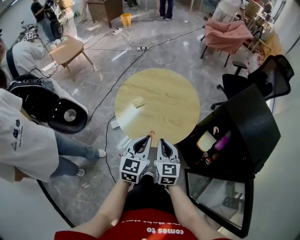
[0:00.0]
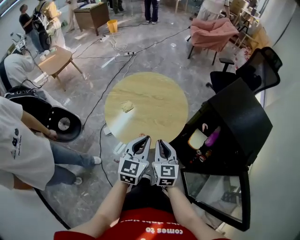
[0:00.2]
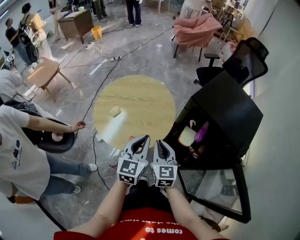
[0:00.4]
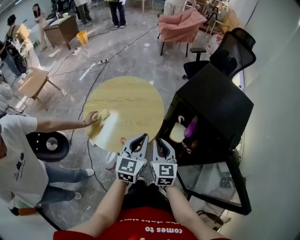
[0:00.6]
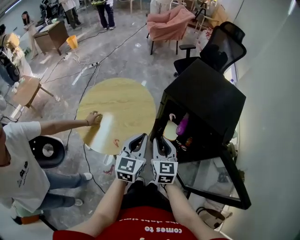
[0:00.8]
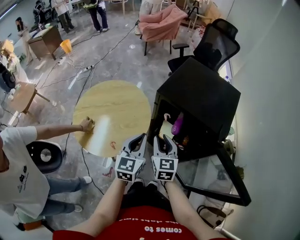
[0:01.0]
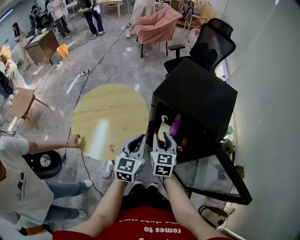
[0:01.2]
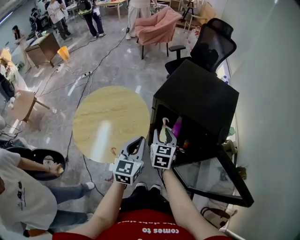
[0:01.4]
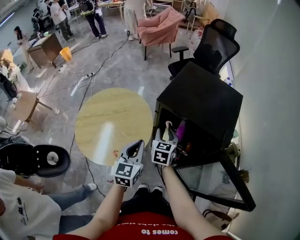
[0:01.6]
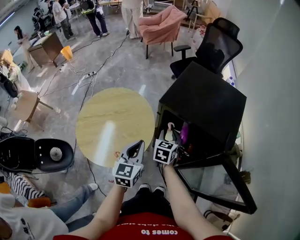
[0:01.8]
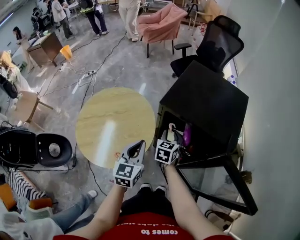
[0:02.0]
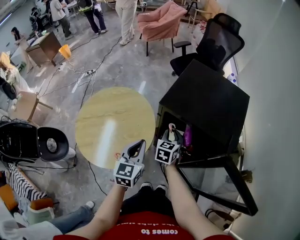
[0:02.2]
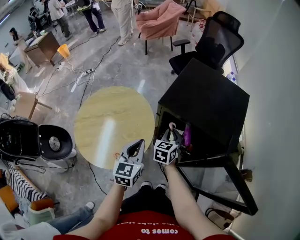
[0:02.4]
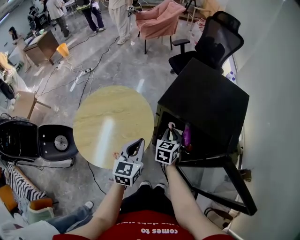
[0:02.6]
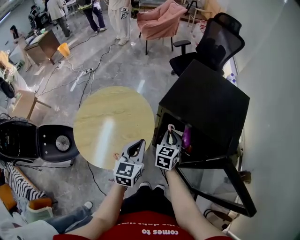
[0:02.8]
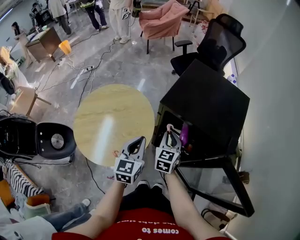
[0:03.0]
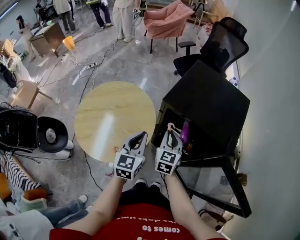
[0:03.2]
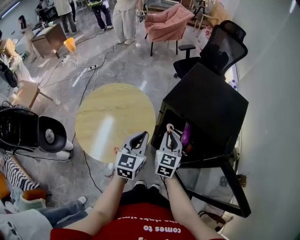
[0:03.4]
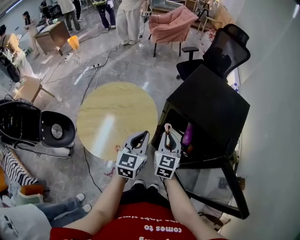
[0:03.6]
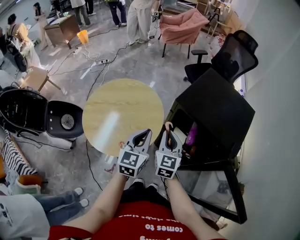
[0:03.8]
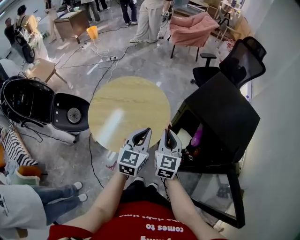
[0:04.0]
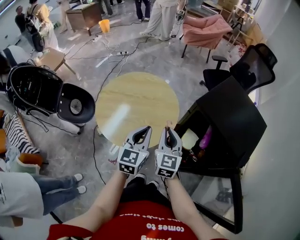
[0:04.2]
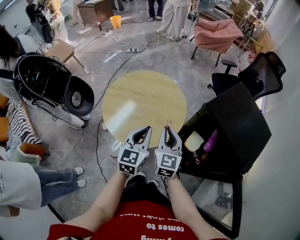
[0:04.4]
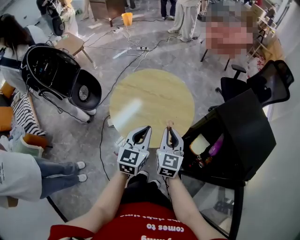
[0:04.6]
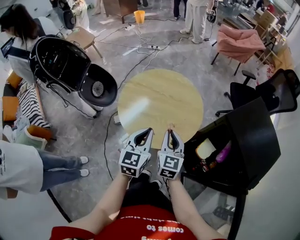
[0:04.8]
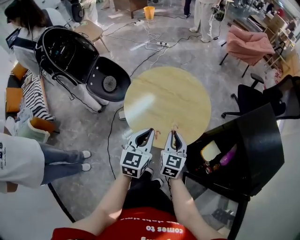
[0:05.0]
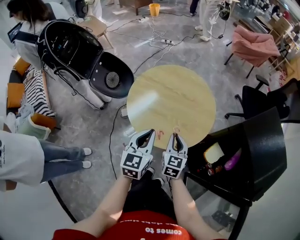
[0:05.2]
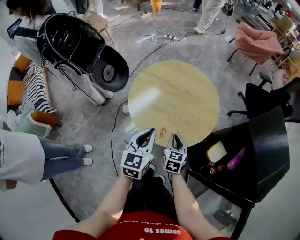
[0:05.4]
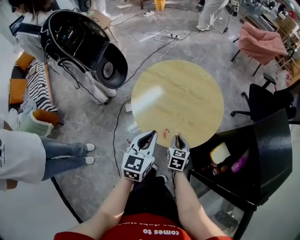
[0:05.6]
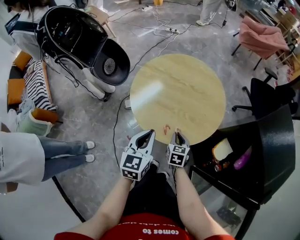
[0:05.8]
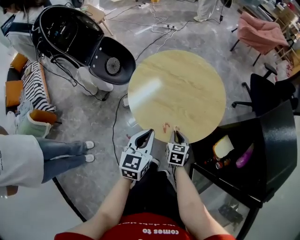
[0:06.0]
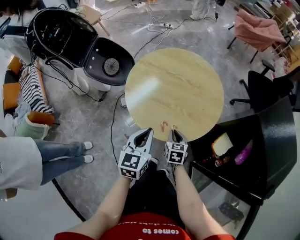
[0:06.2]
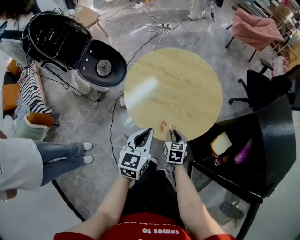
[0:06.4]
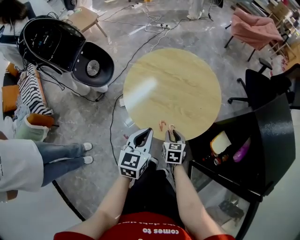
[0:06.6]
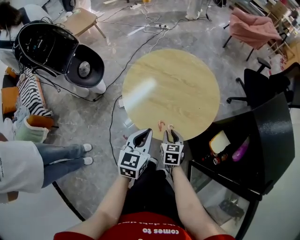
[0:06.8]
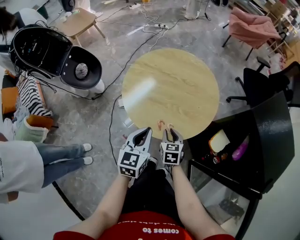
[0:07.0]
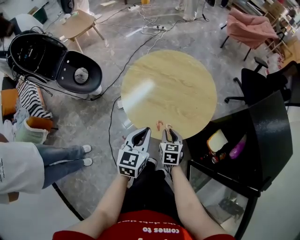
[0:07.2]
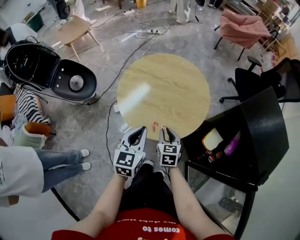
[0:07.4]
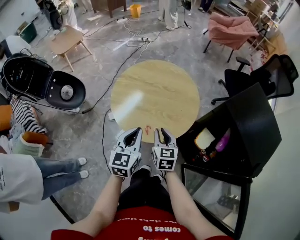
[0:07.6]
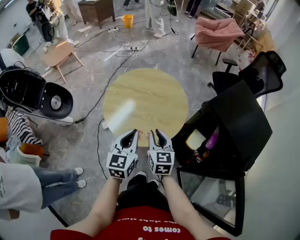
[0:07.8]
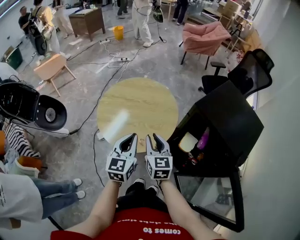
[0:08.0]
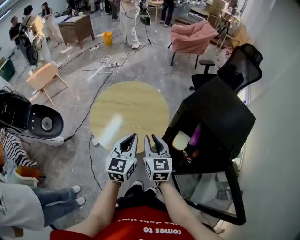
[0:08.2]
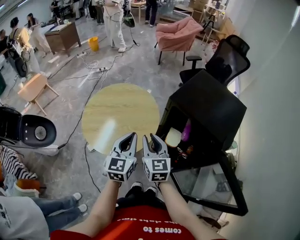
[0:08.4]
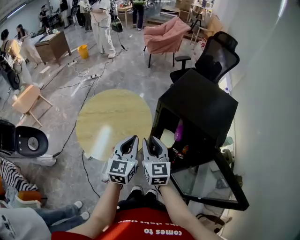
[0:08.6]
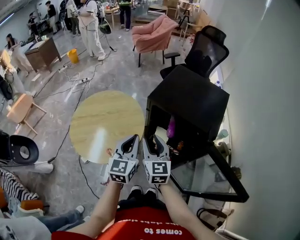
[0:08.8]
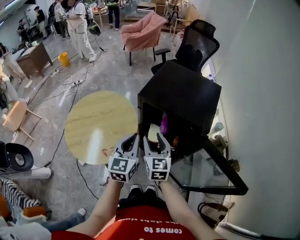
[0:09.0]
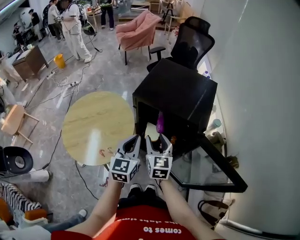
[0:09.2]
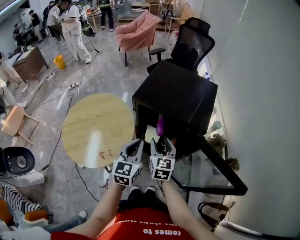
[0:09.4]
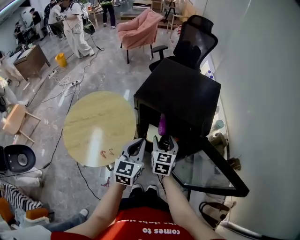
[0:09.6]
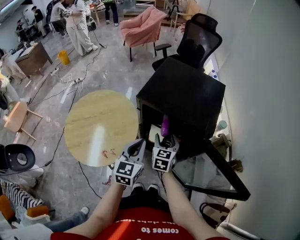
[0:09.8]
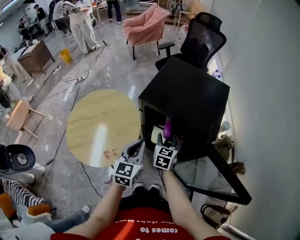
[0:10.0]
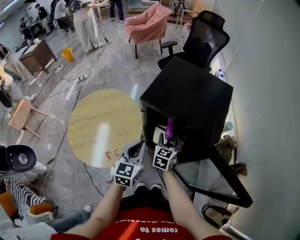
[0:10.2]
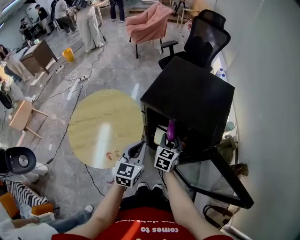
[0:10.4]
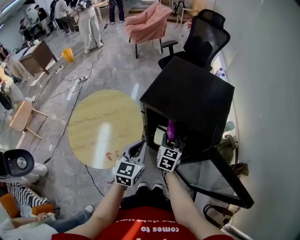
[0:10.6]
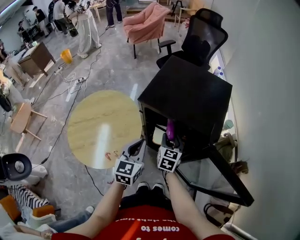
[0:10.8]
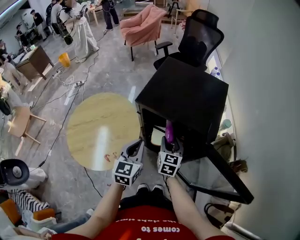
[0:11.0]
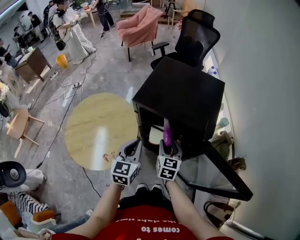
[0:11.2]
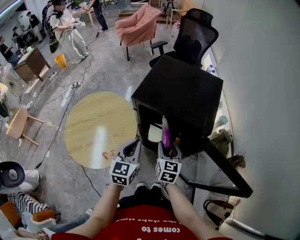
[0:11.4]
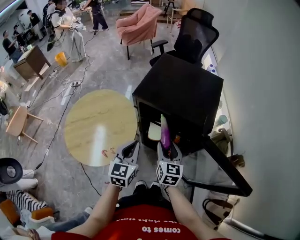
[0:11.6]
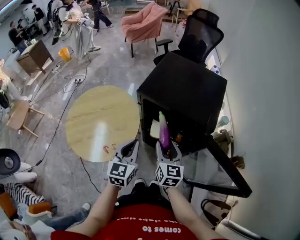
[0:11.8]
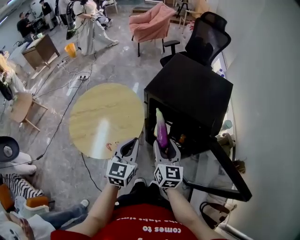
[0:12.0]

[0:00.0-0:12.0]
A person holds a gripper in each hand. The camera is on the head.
0:00.0 to 0:01.6: The right gripper moves approximately 25 cm, changes its angle by some 40 degrees, and opens its fingers; the left gripper shifts by roughly 20 cm, and turns by approximately 20 degrees.
0:01.6 to 0:03.0: The right gripper closes.
0:03.0 to 0:04.4: The right gripper changes place by approximately 20 cm, and rotates approximately 30 degrees. Meanwhile the left gripper shifts by some 15 cm, and turns by roughly 20 degrees.
0:04.4 to 0:06.0: The left gripper travels to the left and downward by some 15 cm. The right gripper goes roughly 25 cm downward, and tilts its fingers roughly 30 degrees downward.
0:06.0 to 0:07.6: The left gripper goes approximately 5 cm upward. Meanwhile the right gripper goes approximately 15 cm upward.
0:07.6 to 0:09.0: The right gripper changes place by about 30 cm, rotates approximately 40 degrees, and opens up. Meanwhile the left gripper moves about 25 cm, and changes its angle by about 30 degrees.
0:09.0 to 0:10.4: The left gripper goes roughly 5 cm downward. Meanwhile the right gripper heads downward, forward and to the right, covering roughly 15 cm, and swivels roughly 30 degrees.
0:10.4 to 0:12.0: The right gripper travels backward and upward by about 15 cm, and turns by roughly 30 degrees, while the left gripper shifts approximately 5 cm backward.

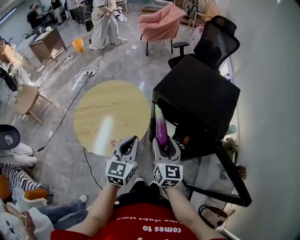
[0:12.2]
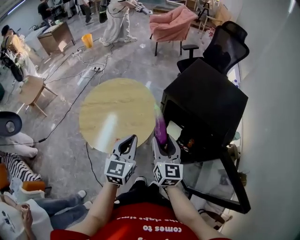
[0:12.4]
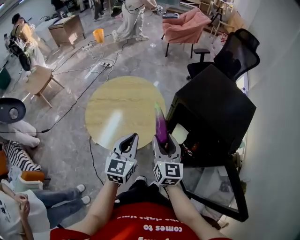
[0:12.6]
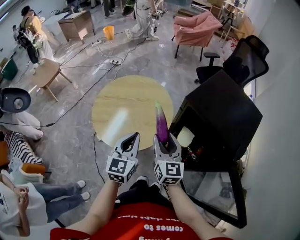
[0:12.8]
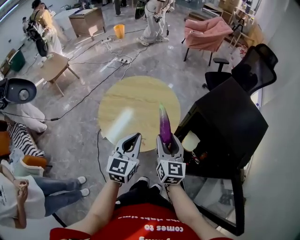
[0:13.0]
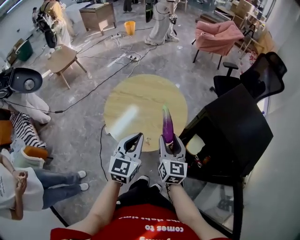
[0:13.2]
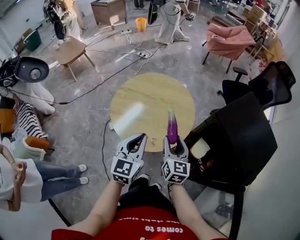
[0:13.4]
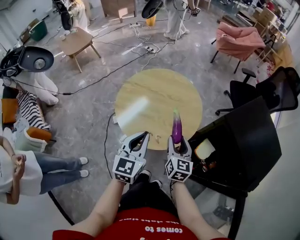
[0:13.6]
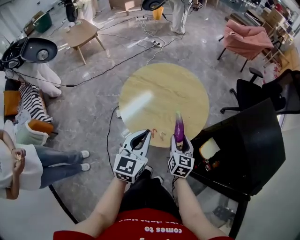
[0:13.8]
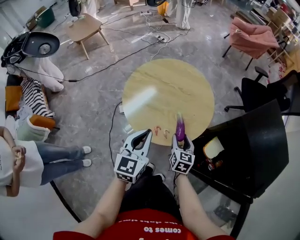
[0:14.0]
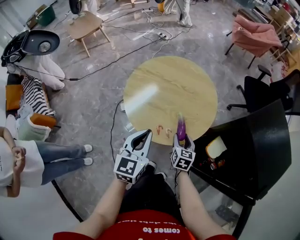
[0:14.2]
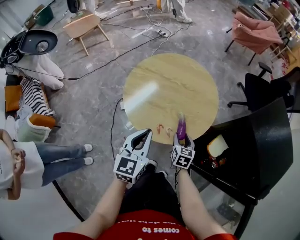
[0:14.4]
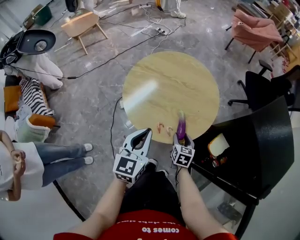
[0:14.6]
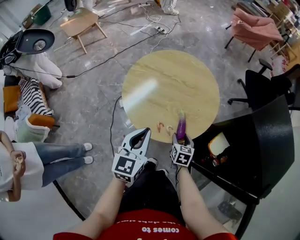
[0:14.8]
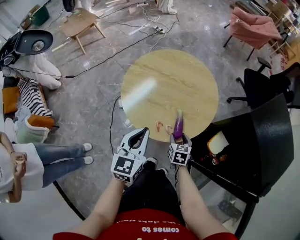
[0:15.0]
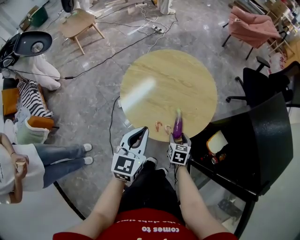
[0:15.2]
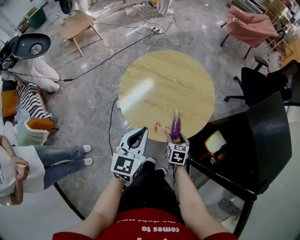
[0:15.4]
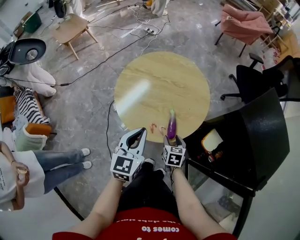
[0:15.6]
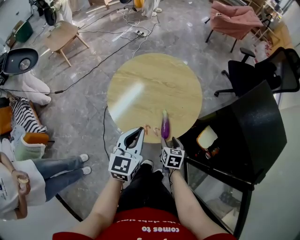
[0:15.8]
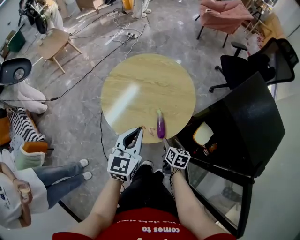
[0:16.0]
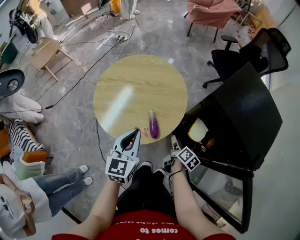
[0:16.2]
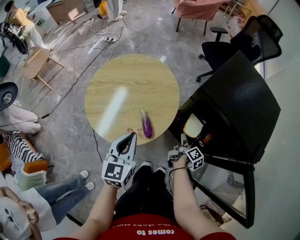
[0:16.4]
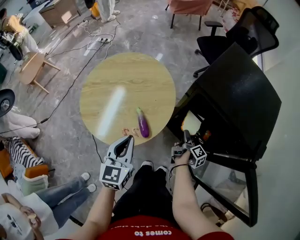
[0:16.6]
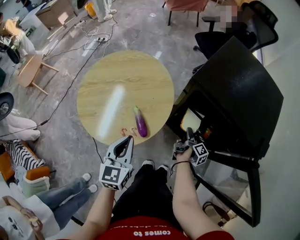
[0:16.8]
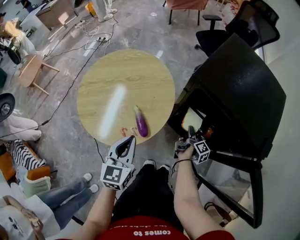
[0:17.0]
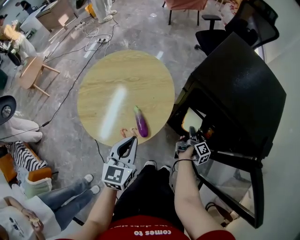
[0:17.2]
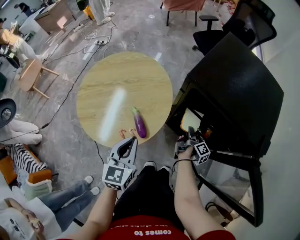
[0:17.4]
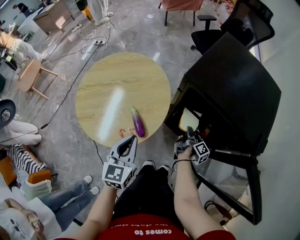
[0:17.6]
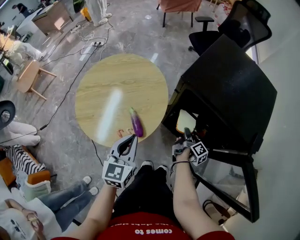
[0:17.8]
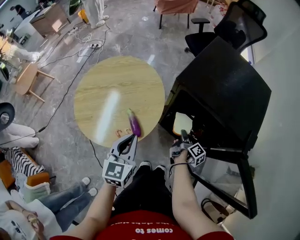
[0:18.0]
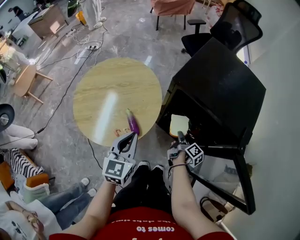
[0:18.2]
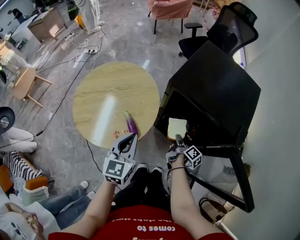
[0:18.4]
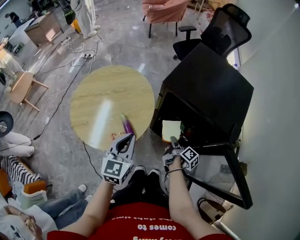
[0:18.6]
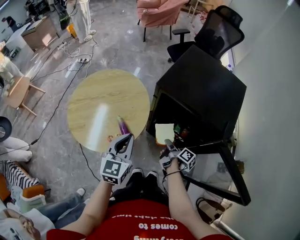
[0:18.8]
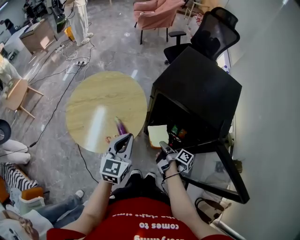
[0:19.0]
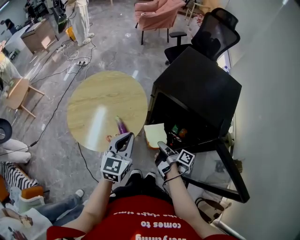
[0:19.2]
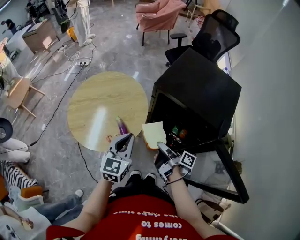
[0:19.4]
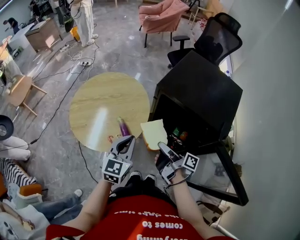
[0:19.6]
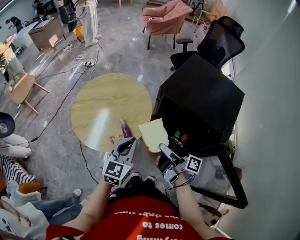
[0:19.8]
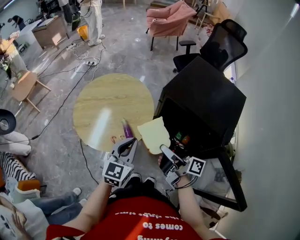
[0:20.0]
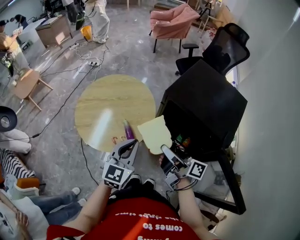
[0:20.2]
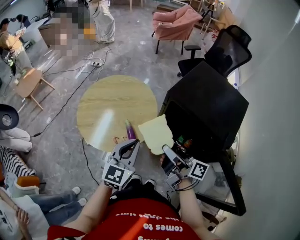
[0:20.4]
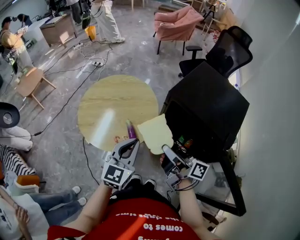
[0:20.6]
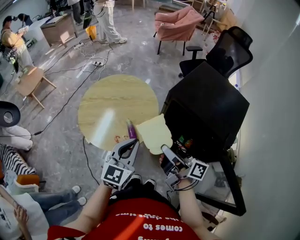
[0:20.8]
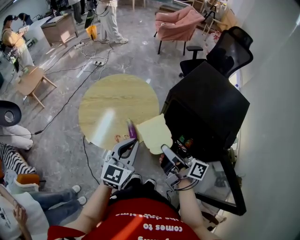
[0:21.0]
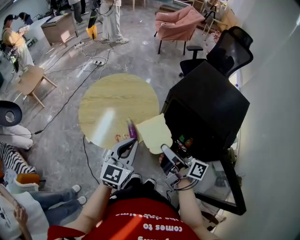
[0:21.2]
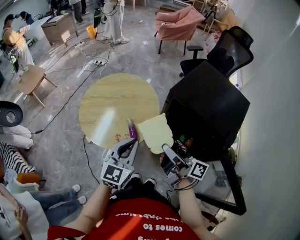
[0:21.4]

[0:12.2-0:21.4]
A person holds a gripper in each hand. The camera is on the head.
0:12.2 to 0:13.8: The right gripper moves roughly 25 cm, and turns by roughly 30 degrees; the left gripper changes place by about 20 cm, and changes its angle by about 30 degrees.
0:13.8 to 0:15.2: The right gripper travels downward by roughly 15 cm, and rotates approximately 20 degrees. The left gripper ends up roughly 5 cm from where it was.
0:15.2 to 0:16.8: The right gripper moves approximately 25 cm, and twists about 100 degrees clockwise, seen from behind, while the left gripper changes place by approximately 10 cm, and changes its angle by some 20 degrees.
0:16.8 to 0:18.4: The left gripper heads to the right and upward, covering some 10 cm. The right gripper goes about 10 cm upward, and closes its fingers.
0:18.4 to 0:19.8: The right gripper shifts about 25 cm upward and to the left, and points its fingers roughly 30 degrees further upward.
0:19.8 to 0:21.4: The right gripper travels upward by approximately 10 cm.

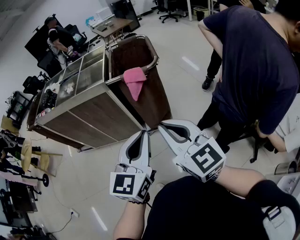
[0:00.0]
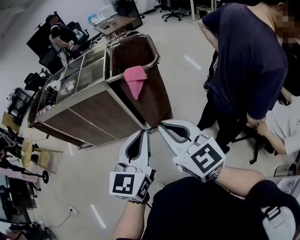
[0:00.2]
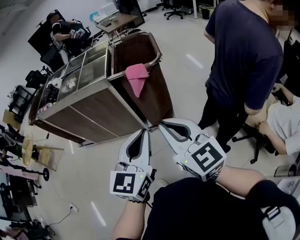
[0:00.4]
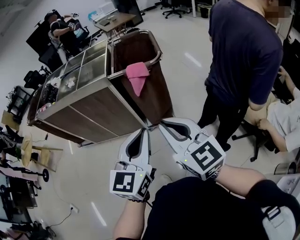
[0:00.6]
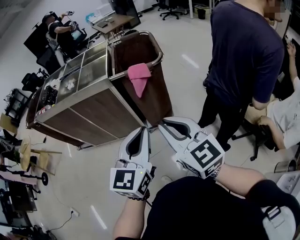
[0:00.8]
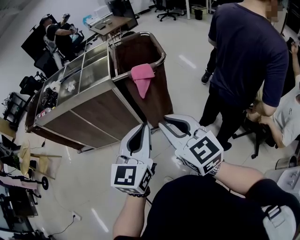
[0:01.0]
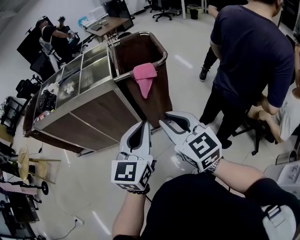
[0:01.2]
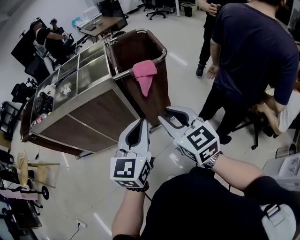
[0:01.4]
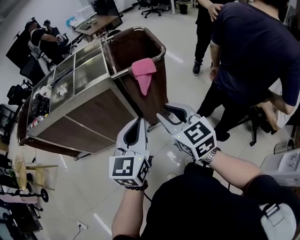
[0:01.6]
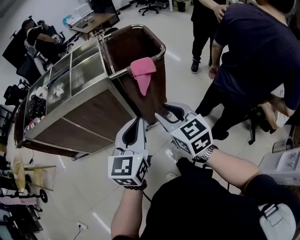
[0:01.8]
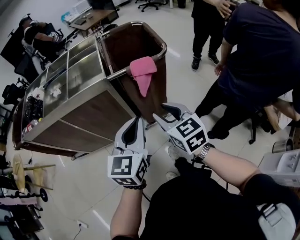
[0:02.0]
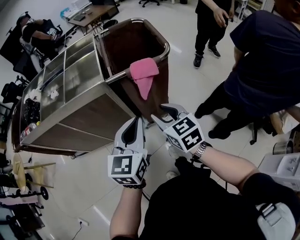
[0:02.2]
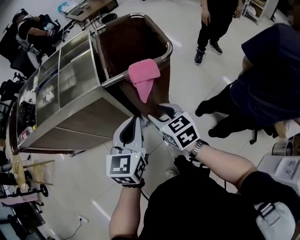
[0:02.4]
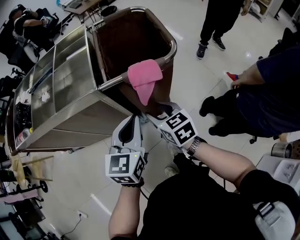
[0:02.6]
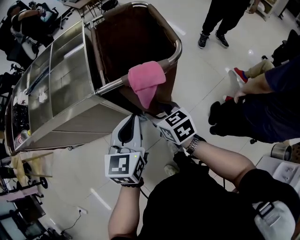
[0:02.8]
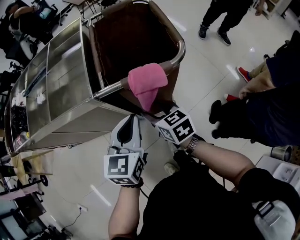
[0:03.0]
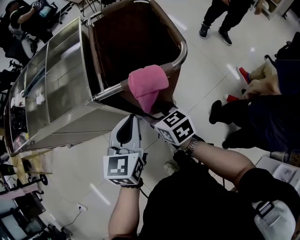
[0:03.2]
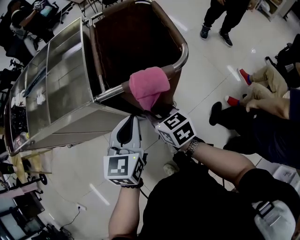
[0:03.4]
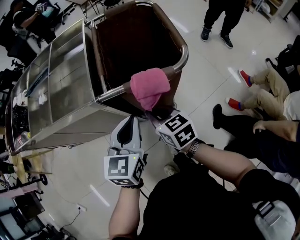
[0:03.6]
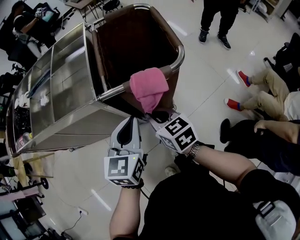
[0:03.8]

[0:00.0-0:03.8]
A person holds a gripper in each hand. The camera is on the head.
0:00.0 to 0:01.2: The grippers both shift to the left and forward by about 10 cm.
0:01.2 to 0:02.6: The right gripper shifts about 40 cm downward and forward, changes its angle by roughly 30 degrees, and opens up. Meanwhile the left gripper goes some 30 cm forward and downward.
0:02.6 to 0:03.8: The left gripper is displaced forward by about 5 cm; the right gripper closes its fingers.
